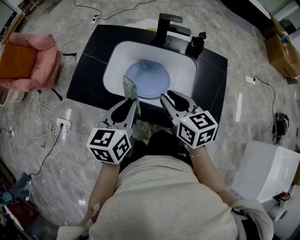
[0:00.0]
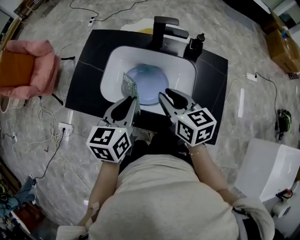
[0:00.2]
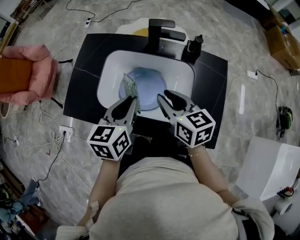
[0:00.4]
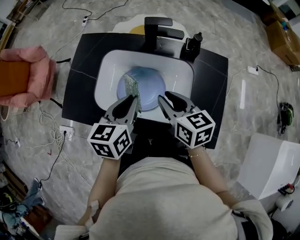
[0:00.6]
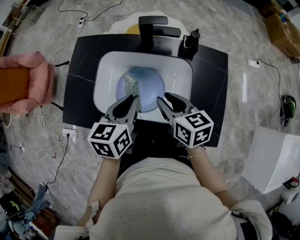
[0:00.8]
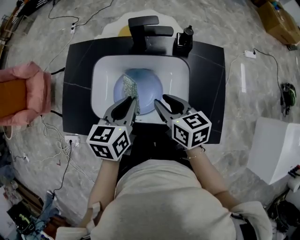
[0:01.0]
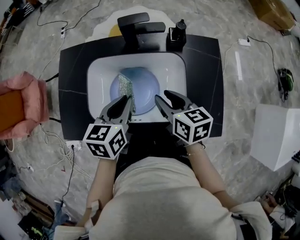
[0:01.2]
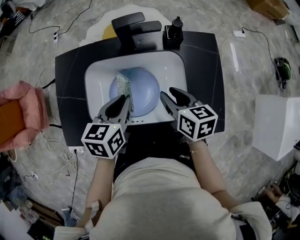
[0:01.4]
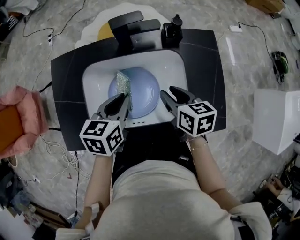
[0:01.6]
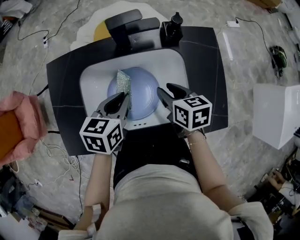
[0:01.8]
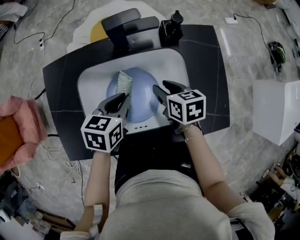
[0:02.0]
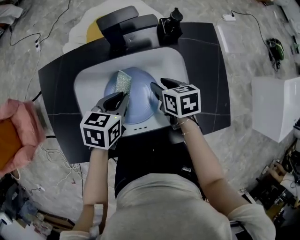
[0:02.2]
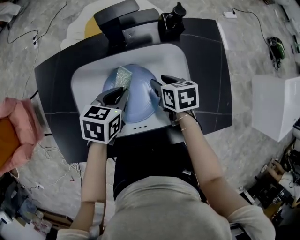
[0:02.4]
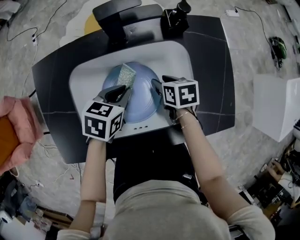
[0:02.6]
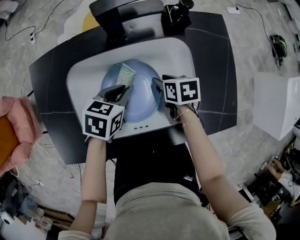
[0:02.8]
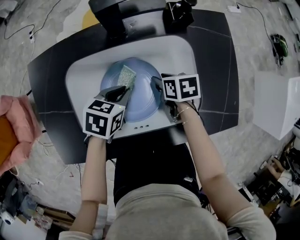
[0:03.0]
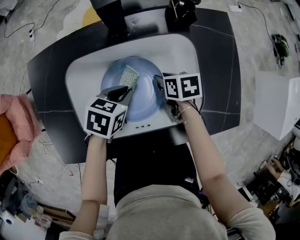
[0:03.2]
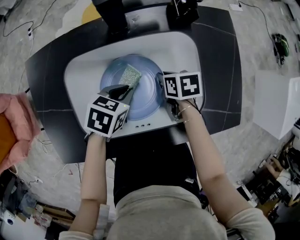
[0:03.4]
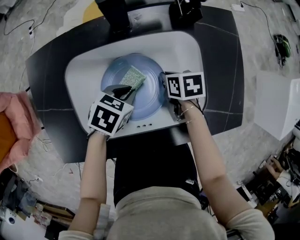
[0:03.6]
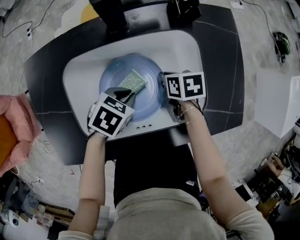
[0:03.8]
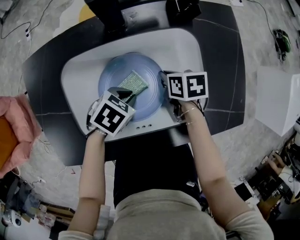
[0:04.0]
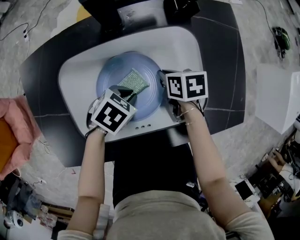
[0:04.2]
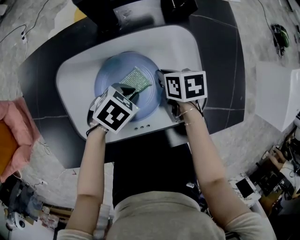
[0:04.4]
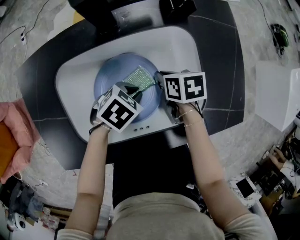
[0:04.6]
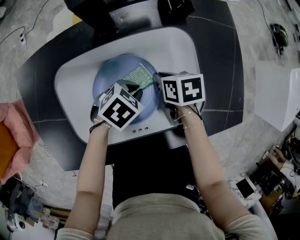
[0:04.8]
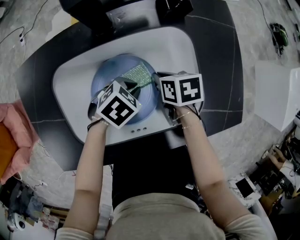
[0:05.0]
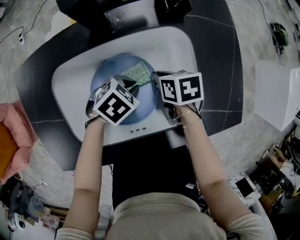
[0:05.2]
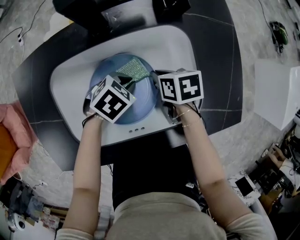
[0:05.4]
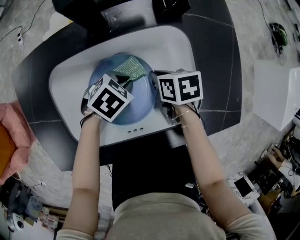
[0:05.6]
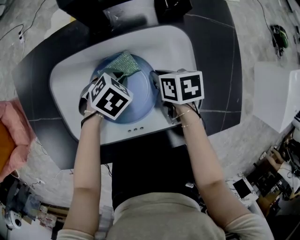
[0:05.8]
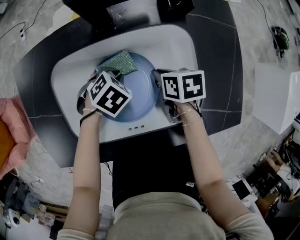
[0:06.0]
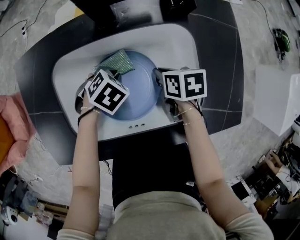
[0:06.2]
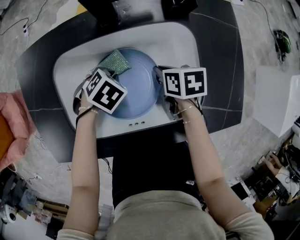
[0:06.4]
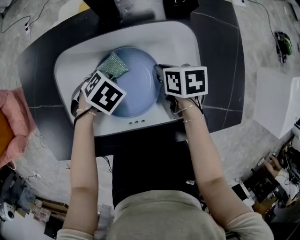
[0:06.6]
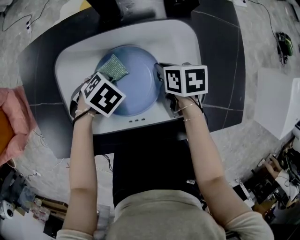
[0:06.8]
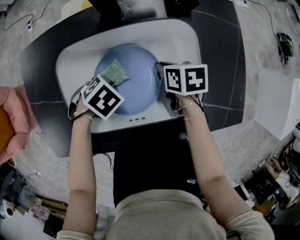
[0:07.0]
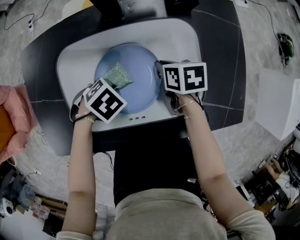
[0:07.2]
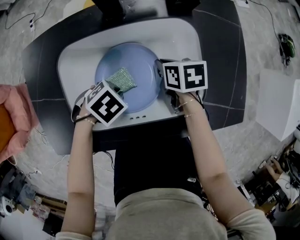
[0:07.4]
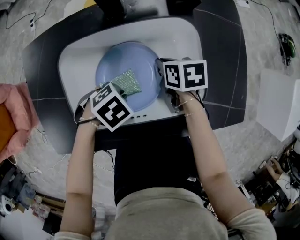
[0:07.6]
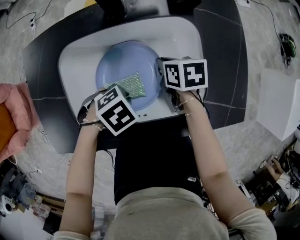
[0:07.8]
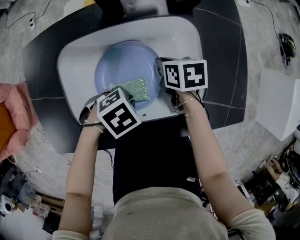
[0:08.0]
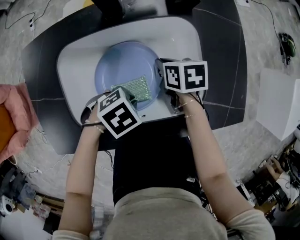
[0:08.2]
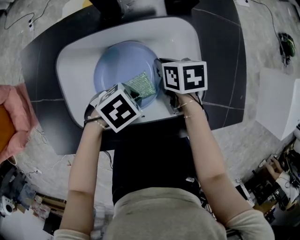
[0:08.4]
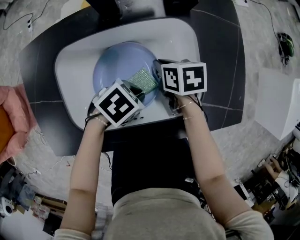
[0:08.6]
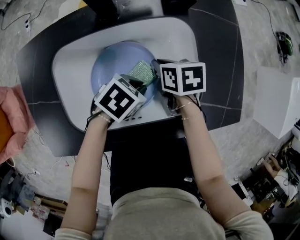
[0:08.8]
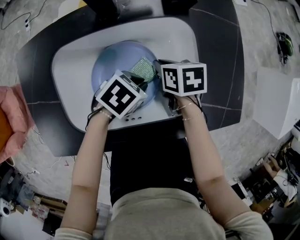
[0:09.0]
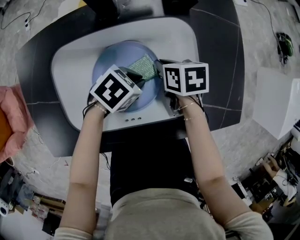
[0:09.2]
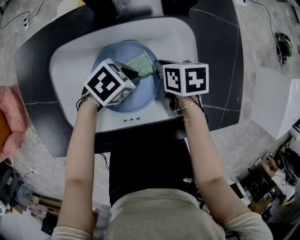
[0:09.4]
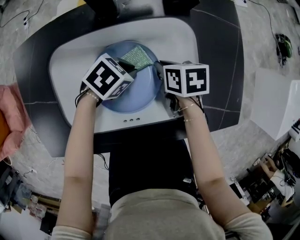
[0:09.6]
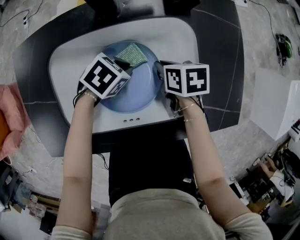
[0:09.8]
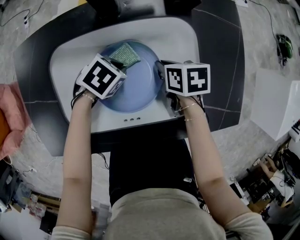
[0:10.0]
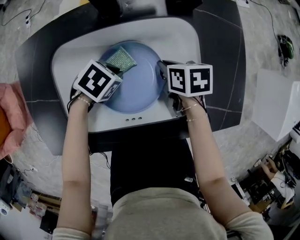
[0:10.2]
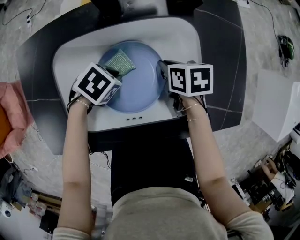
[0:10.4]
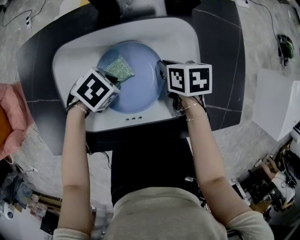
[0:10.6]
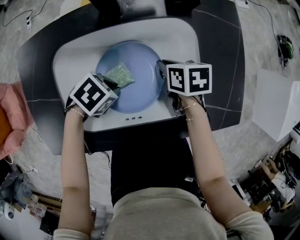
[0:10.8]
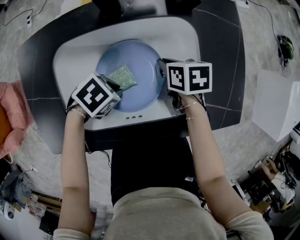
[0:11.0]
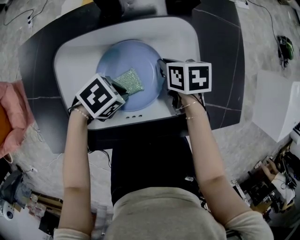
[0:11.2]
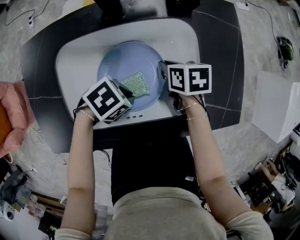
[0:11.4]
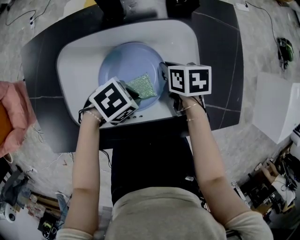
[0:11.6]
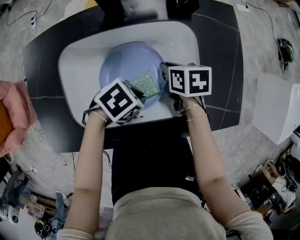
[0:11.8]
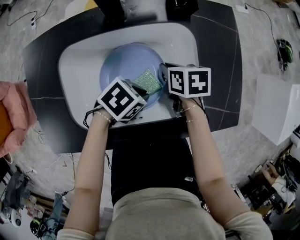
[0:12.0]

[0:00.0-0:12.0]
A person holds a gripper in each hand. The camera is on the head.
0:00.0 to 0:01.6: The right gripper travels downward, forward and to the right by some 15 cm, and rotates some 30 degrees. Meanwhile the left gripper is displaced forward and downward by some 15 cm, and rotates about 30 degrees.
0:01.6 to 0:03.0: Both grippers move downward, about 15 cm. The right gripper changes its angle by approximately 20 degrees. The left gripper turns by some 30 degrees.
0:03.0 to 0:04.4: The right gripper closes up. The left gripper shifts by approximately 5 cm, and swivels some 30 degrees.
0:04.4 to 0:06.0: The left gripper shifts by some 10 cm.
0:06.0 to 0:07.6: The left gripper changes place by some 10 cm.
0:07.6 to 0:09.0: The left gripper shifts by roughly 10 cm, and swivels some 20 degrees.
0:09.0 to 0:10.4: The left gripper changes place by roughly 10 cm.
0:10.4 to 0:12.0: The left gripper changes place by roughly 10 cm.

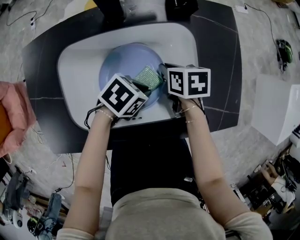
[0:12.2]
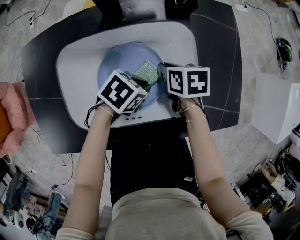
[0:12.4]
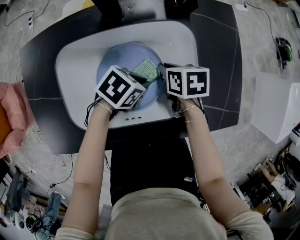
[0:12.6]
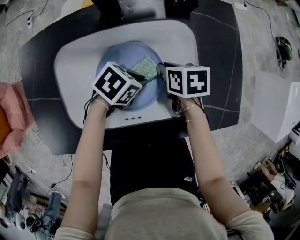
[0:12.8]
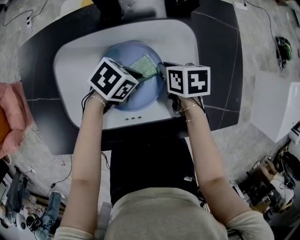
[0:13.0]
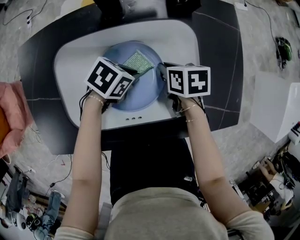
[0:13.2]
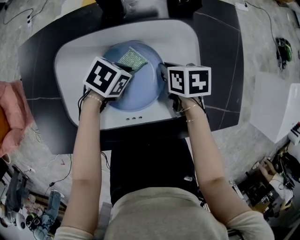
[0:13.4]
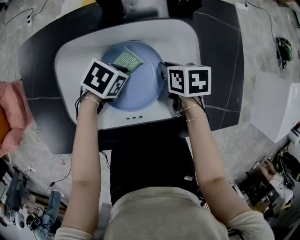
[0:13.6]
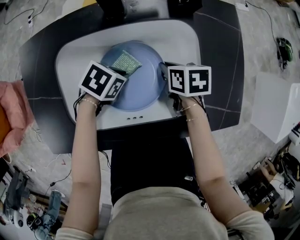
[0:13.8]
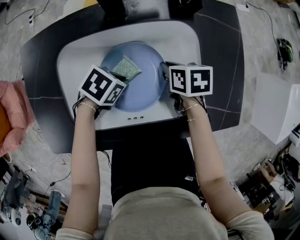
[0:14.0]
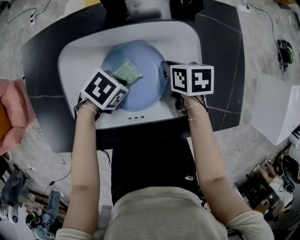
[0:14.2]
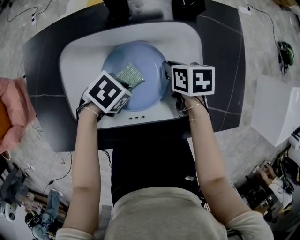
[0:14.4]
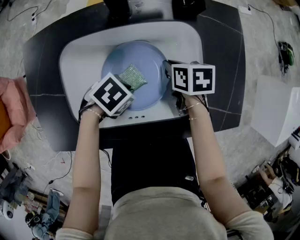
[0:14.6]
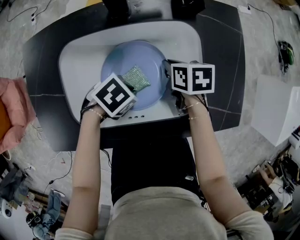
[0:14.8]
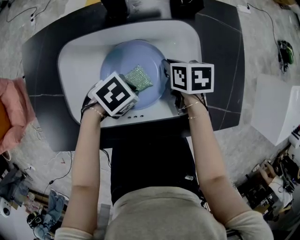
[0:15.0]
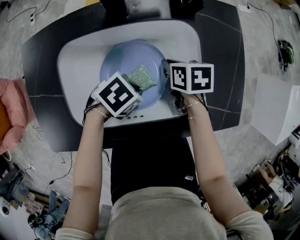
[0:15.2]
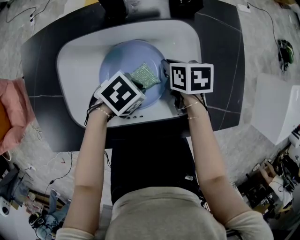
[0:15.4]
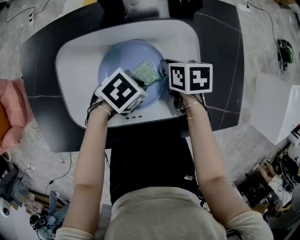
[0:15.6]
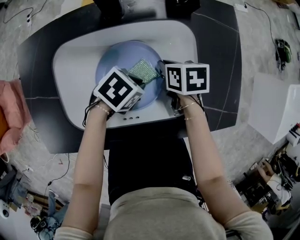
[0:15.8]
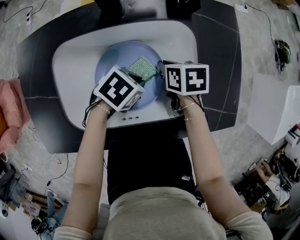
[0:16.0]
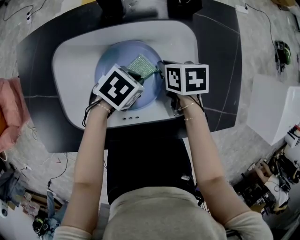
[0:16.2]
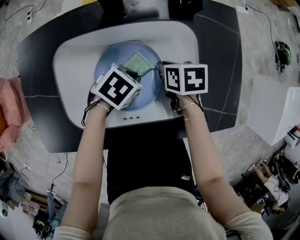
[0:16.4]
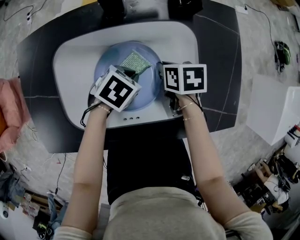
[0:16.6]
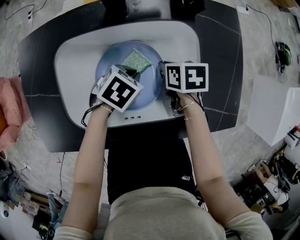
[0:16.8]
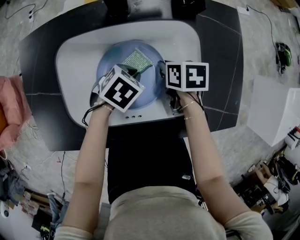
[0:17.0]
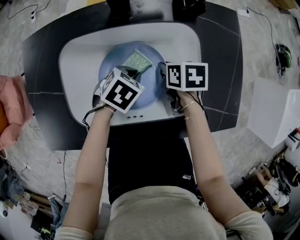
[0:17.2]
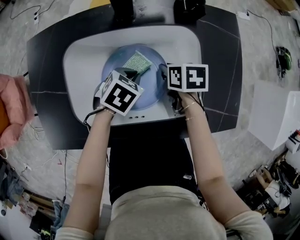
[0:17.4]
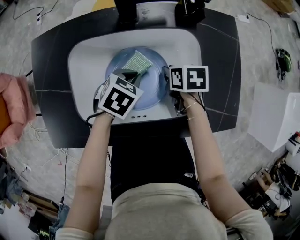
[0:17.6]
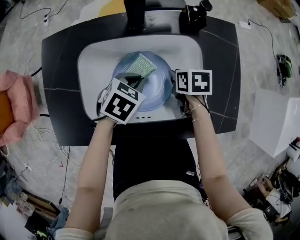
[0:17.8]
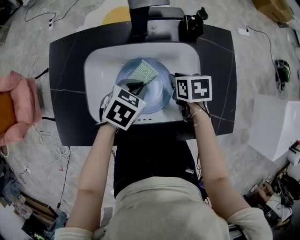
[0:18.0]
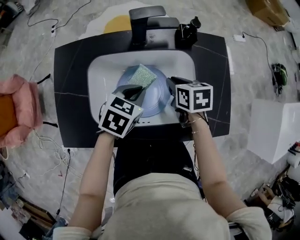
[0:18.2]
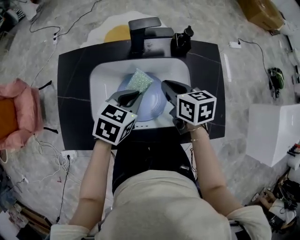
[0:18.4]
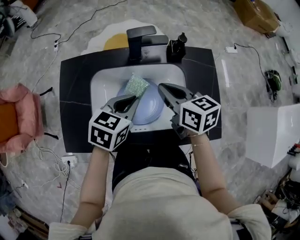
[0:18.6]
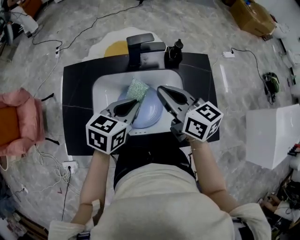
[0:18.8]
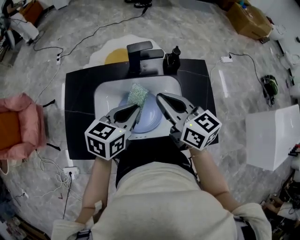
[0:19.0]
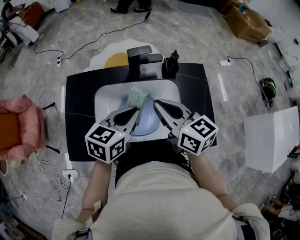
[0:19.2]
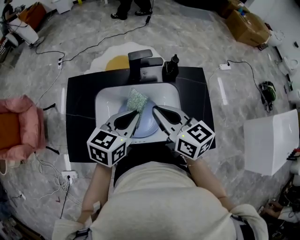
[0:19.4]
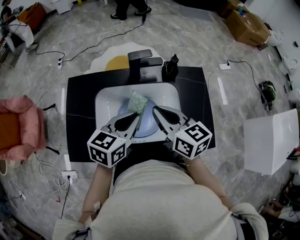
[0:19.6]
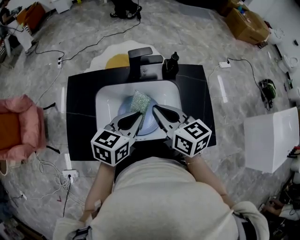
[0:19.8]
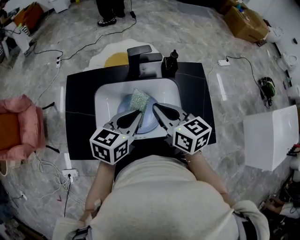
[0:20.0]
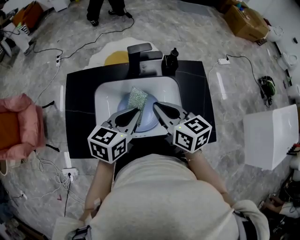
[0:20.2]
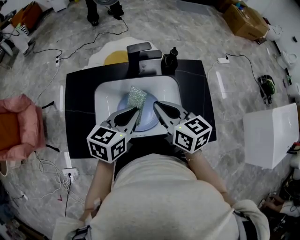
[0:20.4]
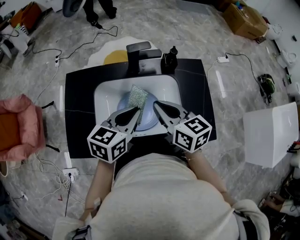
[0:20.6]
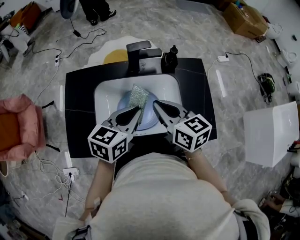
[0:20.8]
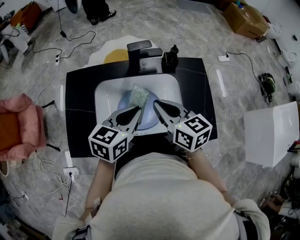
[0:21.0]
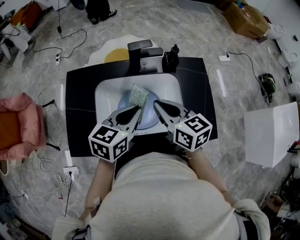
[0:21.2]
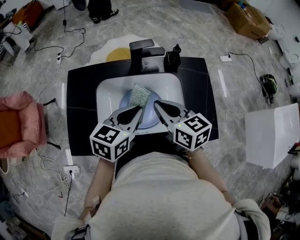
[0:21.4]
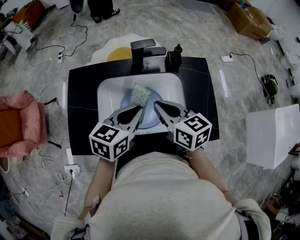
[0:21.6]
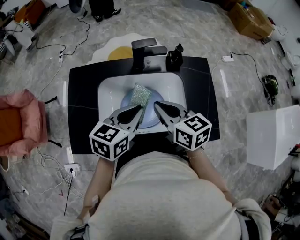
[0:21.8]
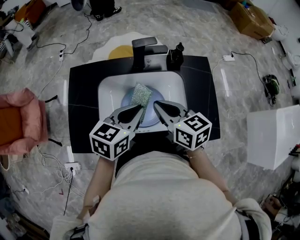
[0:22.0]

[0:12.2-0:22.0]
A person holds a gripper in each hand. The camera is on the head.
0:12.2 to 0:13.6: The left gripper ends up some 10 cm from where it was.
0:13.6 to 0:15.0: The left gripper changes place by about 5 cm.
0:15.0 to 0:16.4: The left gripper shifts by about 5 cm.
0:16.4 to 0:17.8: The left gripper heads upward, covering roughly 5 cm.
0:17.8 to 0:19.2: Both grippers move upward, some 25 cm. The left gripper tips its fingers upward by some 30 degrees. Meanwhile the right gripper points its fingers approximately 50 degrees further upward.
0:19.2 to 0:22.0: The grippers move only a little.

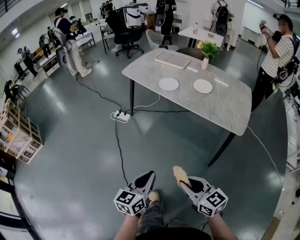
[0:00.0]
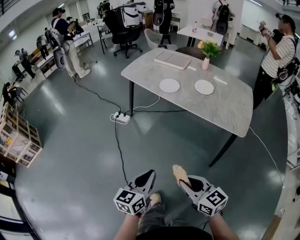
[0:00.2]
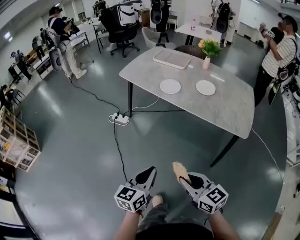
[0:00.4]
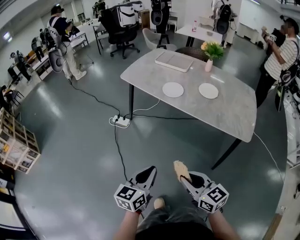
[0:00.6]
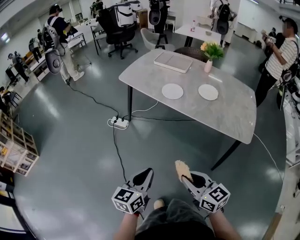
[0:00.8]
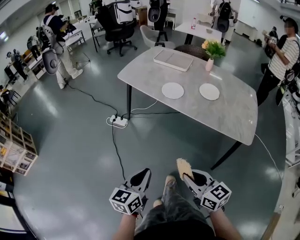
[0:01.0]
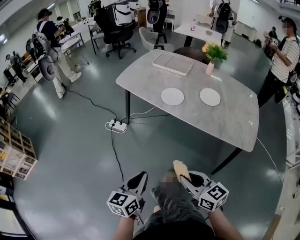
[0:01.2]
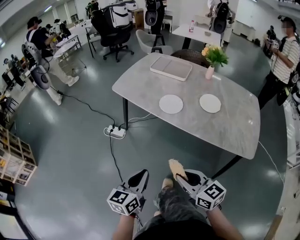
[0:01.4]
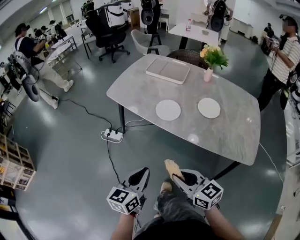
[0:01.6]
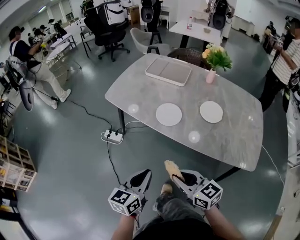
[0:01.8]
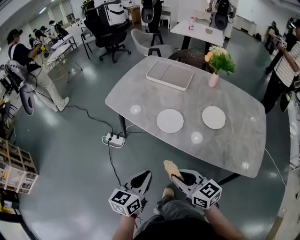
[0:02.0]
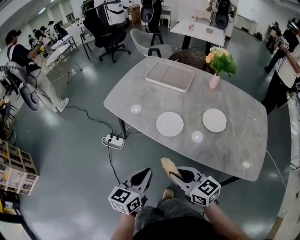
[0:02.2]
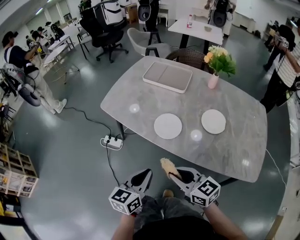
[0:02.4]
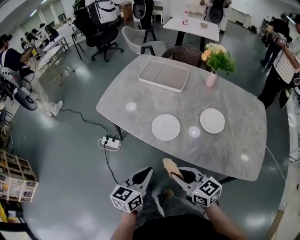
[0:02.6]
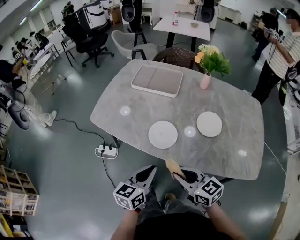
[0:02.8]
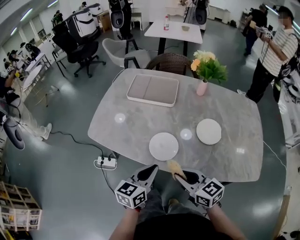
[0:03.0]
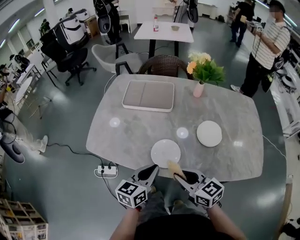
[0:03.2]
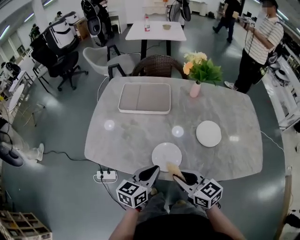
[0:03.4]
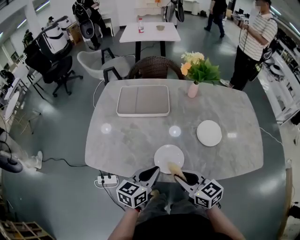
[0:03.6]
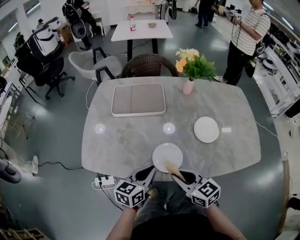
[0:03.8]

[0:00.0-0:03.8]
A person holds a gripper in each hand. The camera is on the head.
0:00.0 to 0:01.2: The two grippers go roughly 20 cm forward.
0:01.2 to 0:02.6: The grippers both shift forward by roughly 25 cm.
0:02.6 to 0:03.8: The right gripper shifts by about 15 cm, and rotates about 30 degrees. Meanwhile the left gripper shifts by some 20 cm, and turns by approximately 30 degrees.
